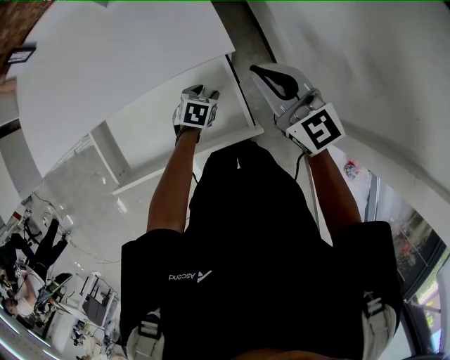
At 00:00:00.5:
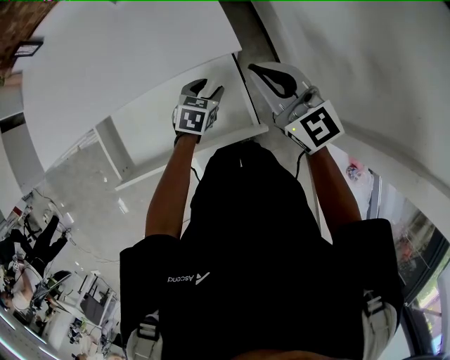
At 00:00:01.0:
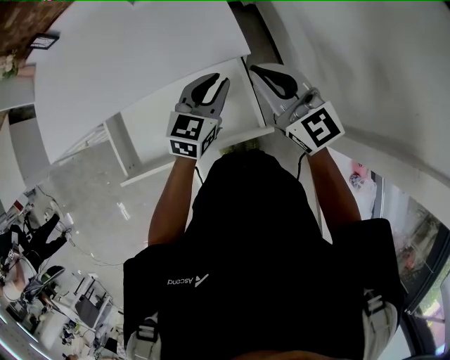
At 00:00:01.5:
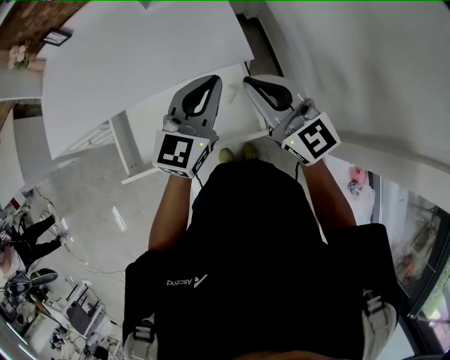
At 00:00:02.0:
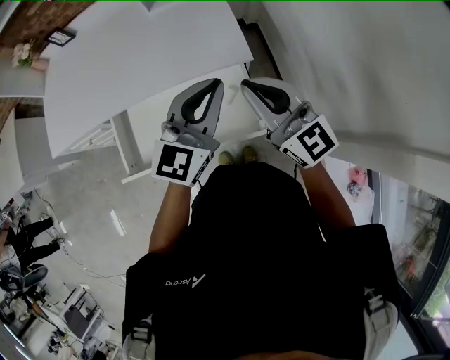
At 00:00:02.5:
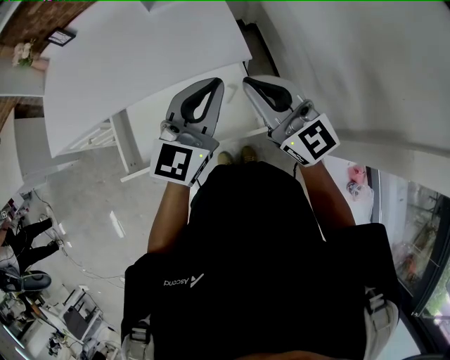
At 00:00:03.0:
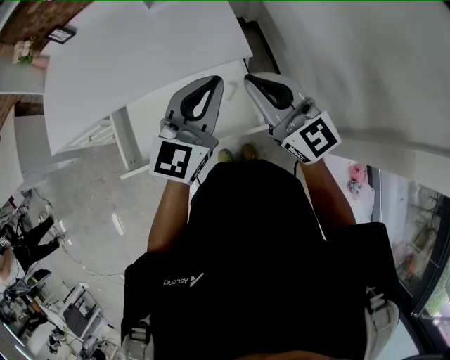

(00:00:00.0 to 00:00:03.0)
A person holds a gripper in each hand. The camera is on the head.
00:00:00.0 - 00:00:01.5: The left gripper goes roughly 35 cm upward, tips its fingers upward by some 50 degrees, and closes up, while the right gripper travels upward, backward and to the left by some 10 cm.
00:00:01.5 - 00:00:03.0: The left gripper ends up some 5 cm from where it was.

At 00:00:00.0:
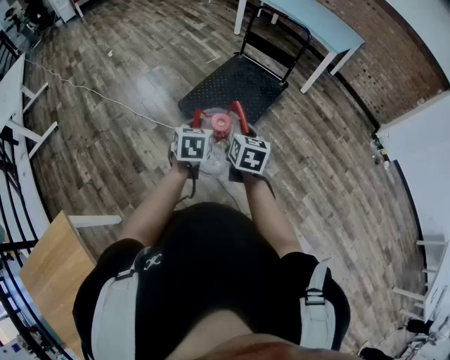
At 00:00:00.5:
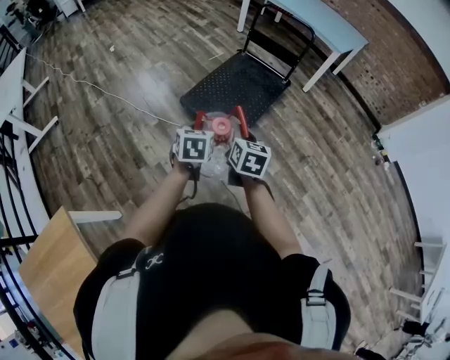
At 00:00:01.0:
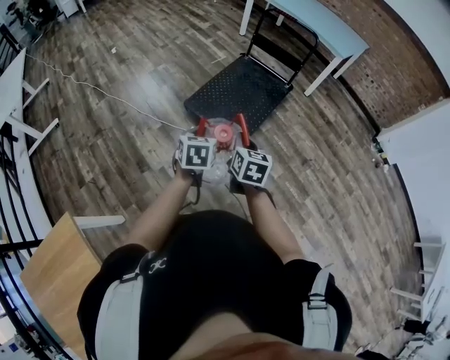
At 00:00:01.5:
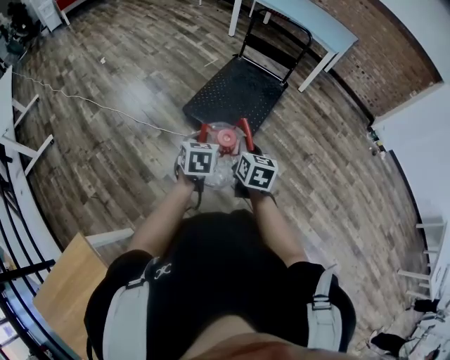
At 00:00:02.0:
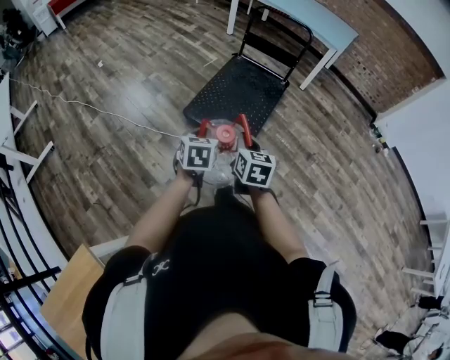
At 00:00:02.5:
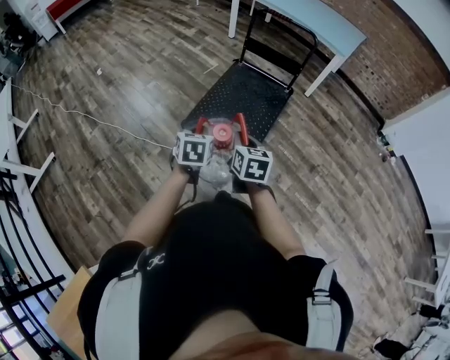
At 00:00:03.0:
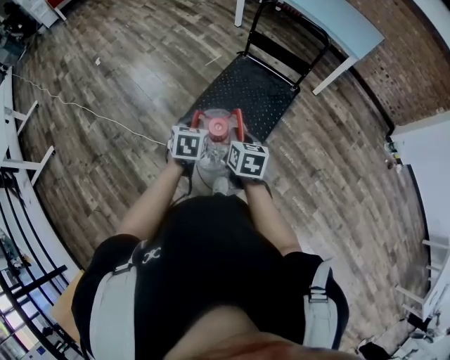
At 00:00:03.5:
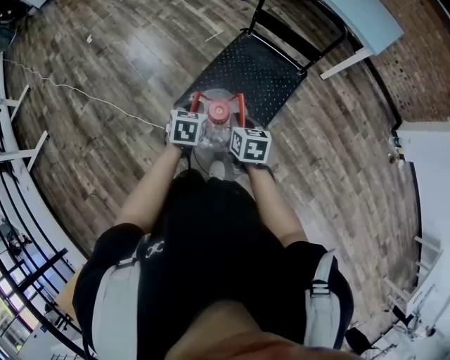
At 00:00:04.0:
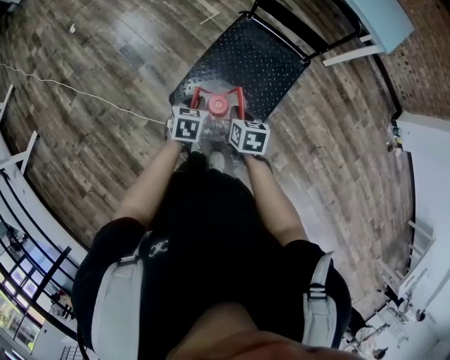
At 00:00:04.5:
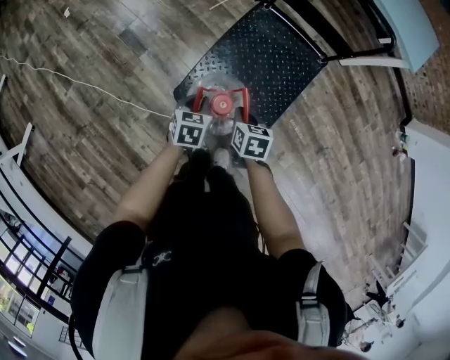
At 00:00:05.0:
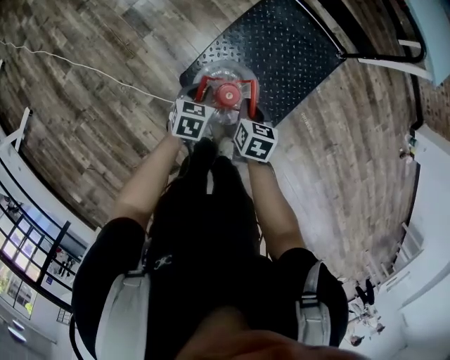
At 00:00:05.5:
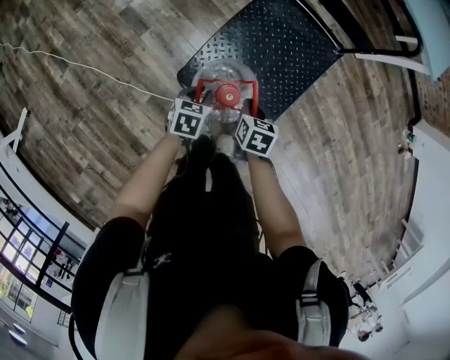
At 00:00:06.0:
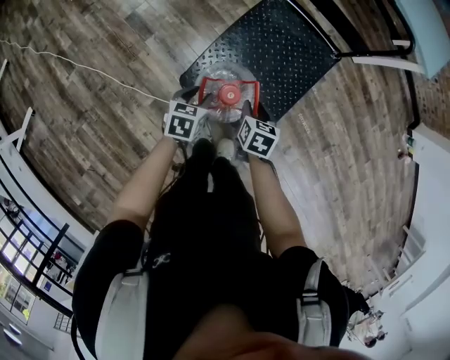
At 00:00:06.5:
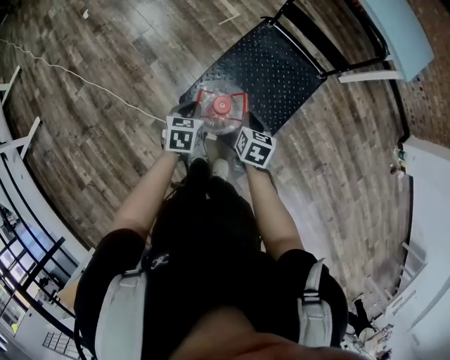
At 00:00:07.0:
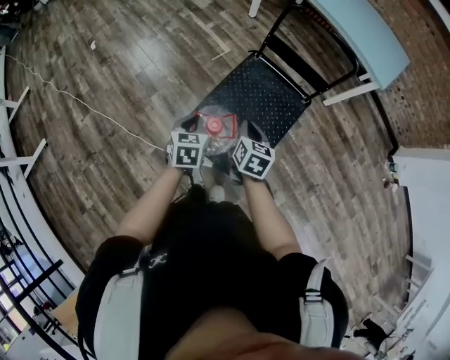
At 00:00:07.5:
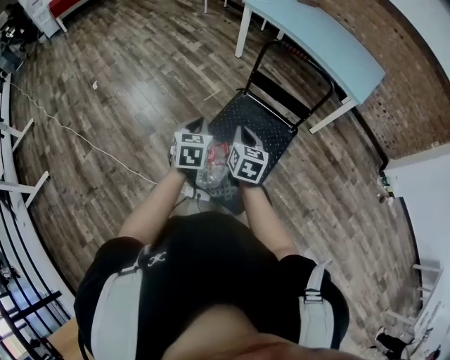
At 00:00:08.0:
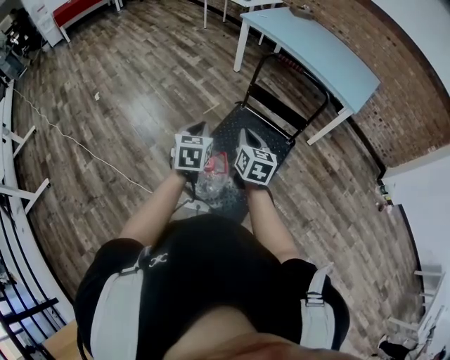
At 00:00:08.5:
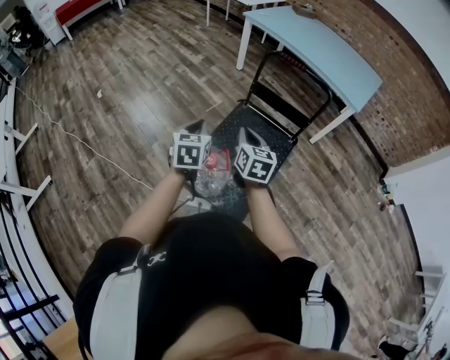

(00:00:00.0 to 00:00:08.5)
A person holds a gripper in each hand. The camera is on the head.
00:00:00.0 - 00:00:02.0: The two grippers go some 10 cm to the left.
00:00:02.0 - 00:00:04.0: The left gripper heads forward, covering approximately 40 cm. The right gripper heads forward and downward, covering approximately 40 cm, and rotates about 30 degrees.
00:00:04.0 - 00:00:06.5: The right gripper goes downward and returns, about 15 cm each way, and opens, then closes again; the left gripper is displaced to the left by roughly 5 cm, goes downward and returns, approximately 15 cm each way, and opens, then closes once more.
00:00:06.5 - 00:00:08.5: The two grippers go some 25 cm upward. The left gripper changes its angle by about 20 degrees, while the right gripper swivels roughly 30 degrees.

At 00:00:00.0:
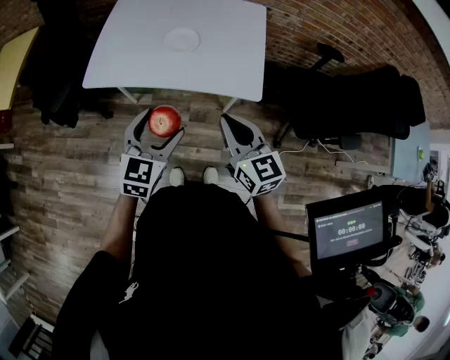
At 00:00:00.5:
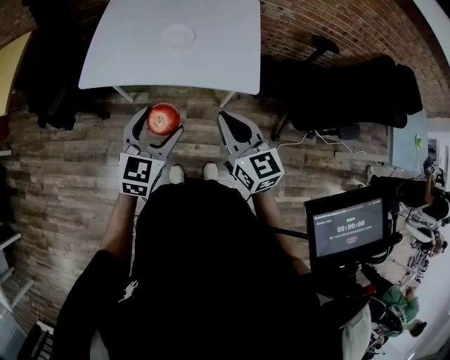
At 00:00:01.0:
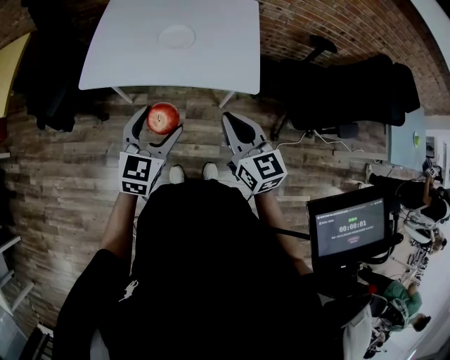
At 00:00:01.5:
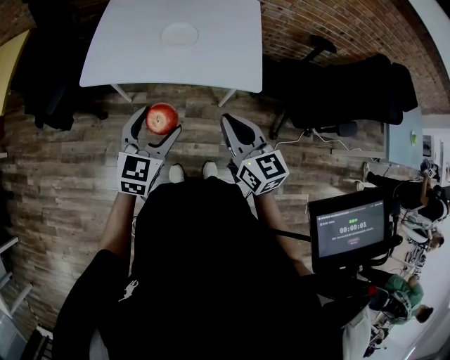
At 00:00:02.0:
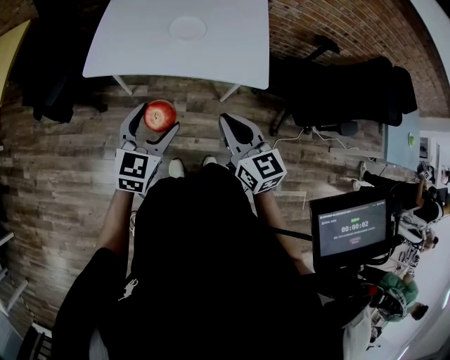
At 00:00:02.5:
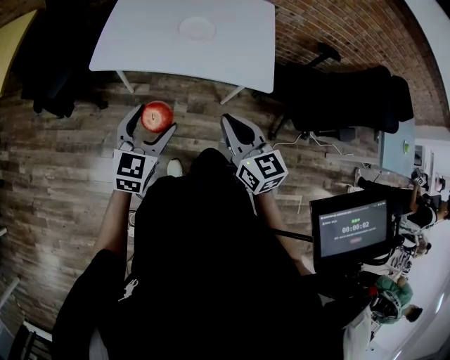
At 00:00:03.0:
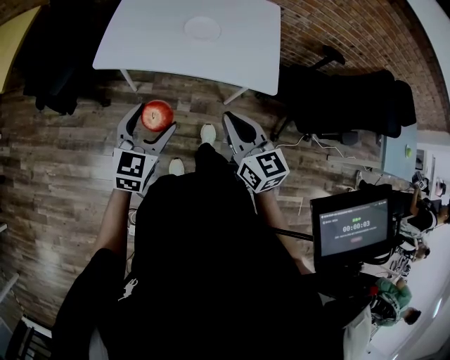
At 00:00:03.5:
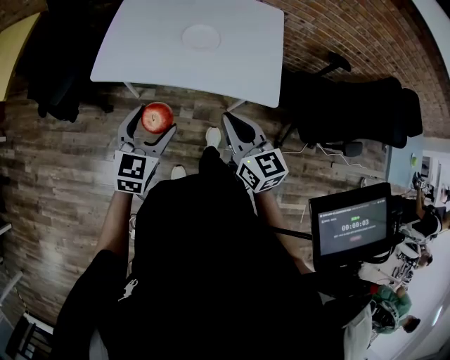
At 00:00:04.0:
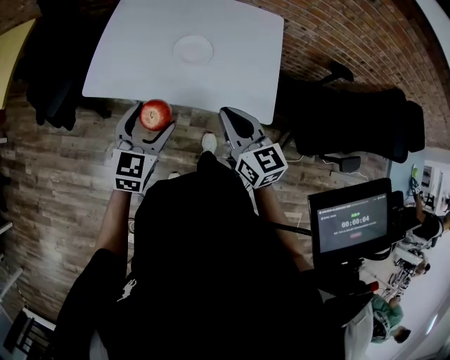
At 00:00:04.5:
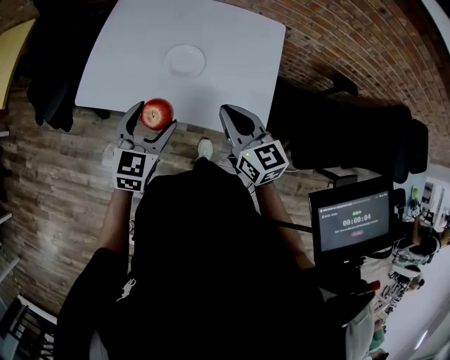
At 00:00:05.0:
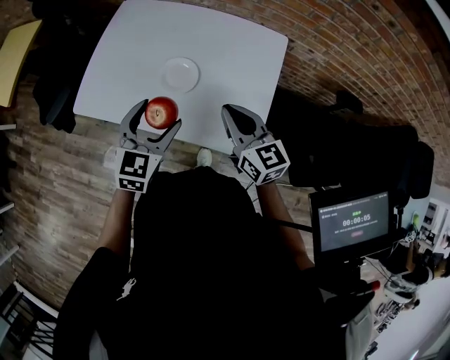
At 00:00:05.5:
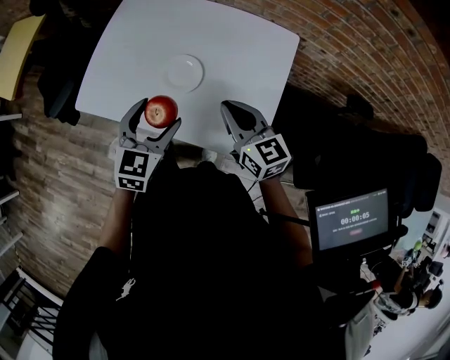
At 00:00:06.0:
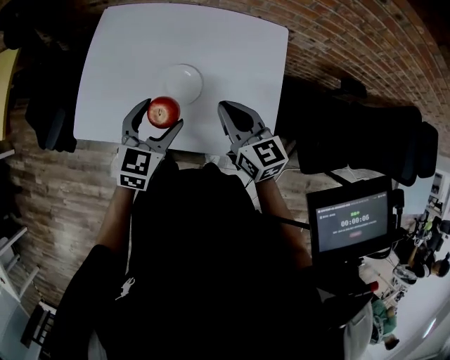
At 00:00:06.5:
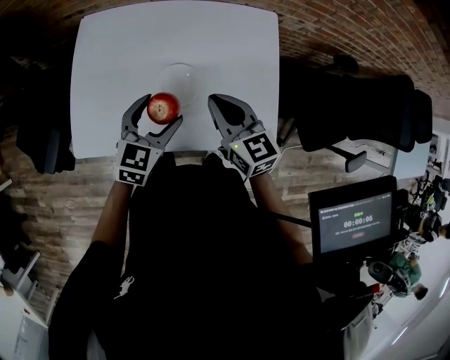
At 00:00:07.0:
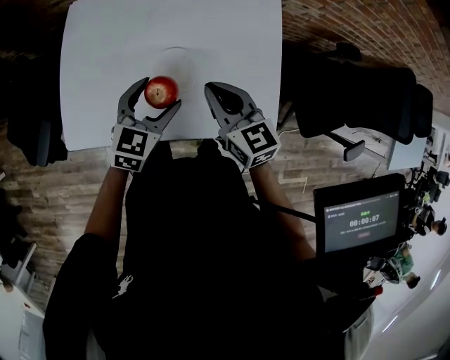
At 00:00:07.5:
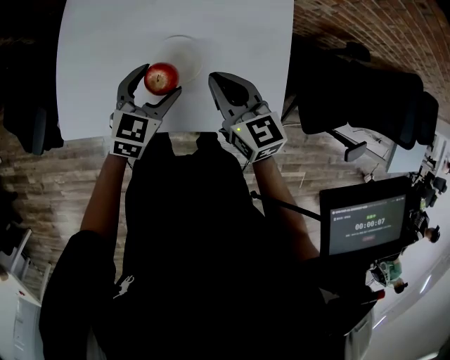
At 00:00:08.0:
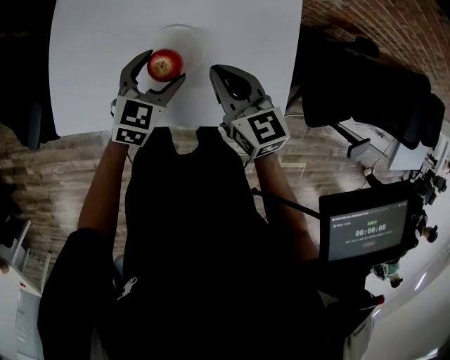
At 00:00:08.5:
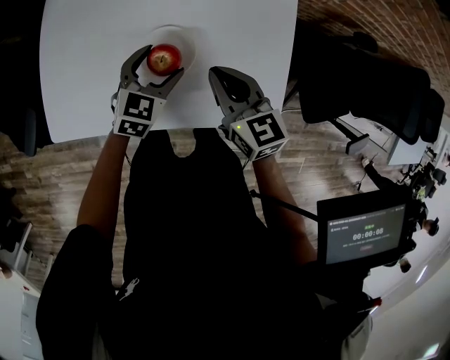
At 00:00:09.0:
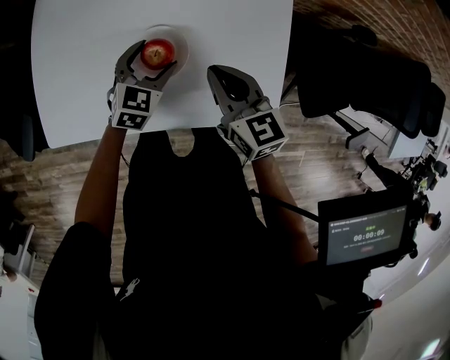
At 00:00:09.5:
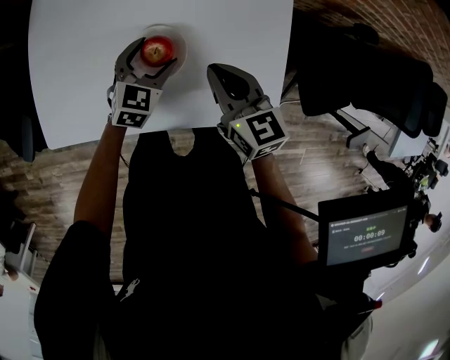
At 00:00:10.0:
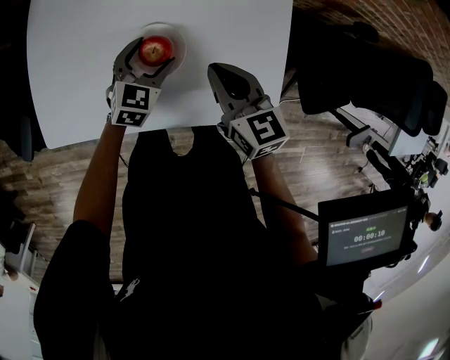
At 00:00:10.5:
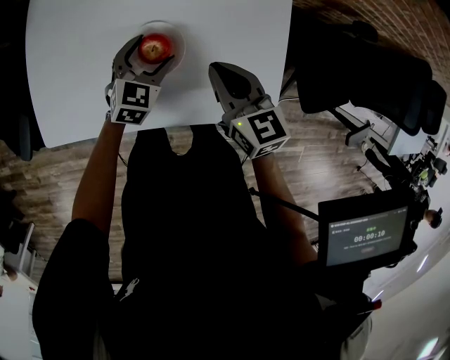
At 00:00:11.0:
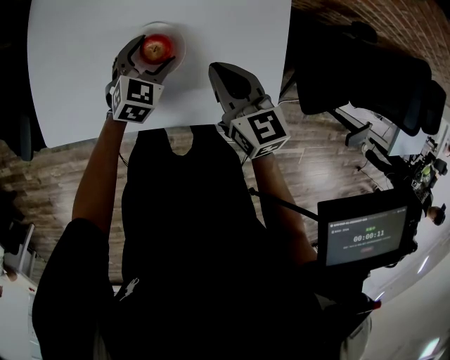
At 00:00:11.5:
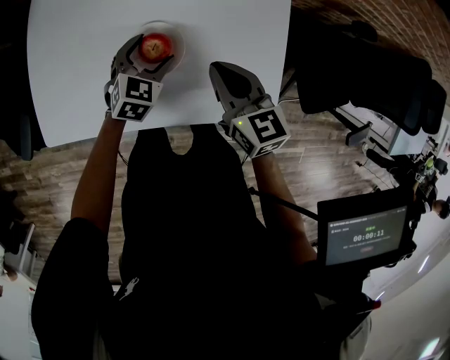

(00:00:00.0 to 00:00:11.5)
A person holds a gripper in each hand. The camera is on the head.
00:00:00.0 - 00:00:02.0: Both grippers travel together to the left, some 5 cm.
00:00:02.0 - 00:00:04.0: The grippers both shift forward by approximately 15 cm.
00:00:04.0 - 00:00:06.0: The right gripper moves forward, some 20 cm; the left gripper goes approximately 20 cm forward and to the right.
00:00:06.0 - 00:00:07.5: The left gripper heads downward and forward, covering approximately 10 cm; the right gripper moves downward, roughly 5 cm.
00:00:07.5 - 00:00:09.5: The left gripper goes about 5 cm downward.
00:00:09.5 - 00:00:11.5: The grippers stay close to where they were, moving slightly.

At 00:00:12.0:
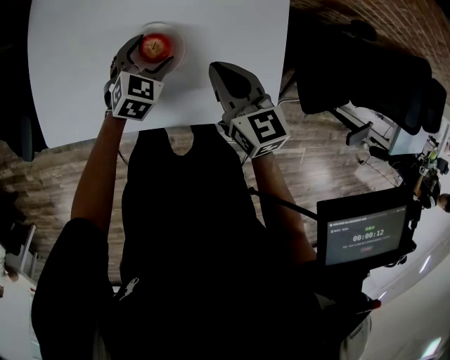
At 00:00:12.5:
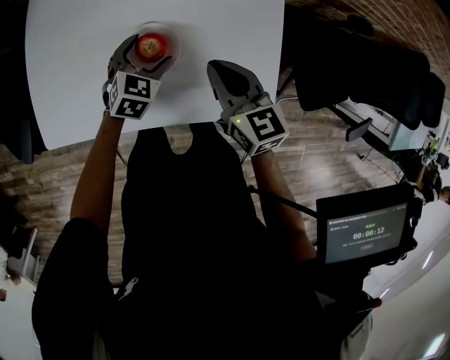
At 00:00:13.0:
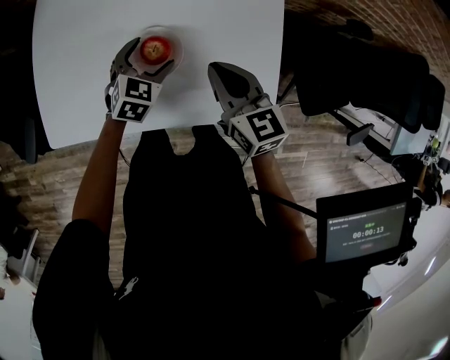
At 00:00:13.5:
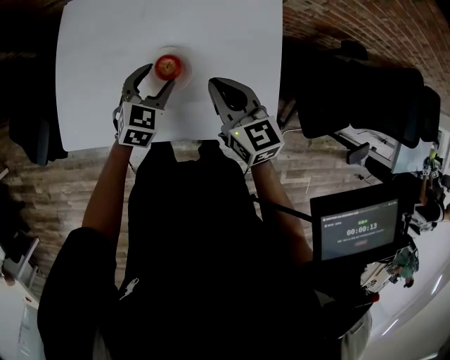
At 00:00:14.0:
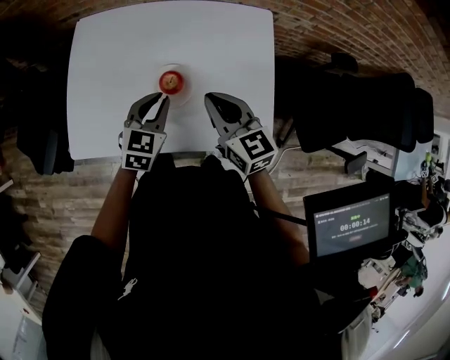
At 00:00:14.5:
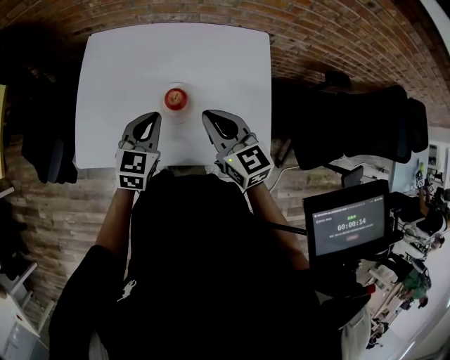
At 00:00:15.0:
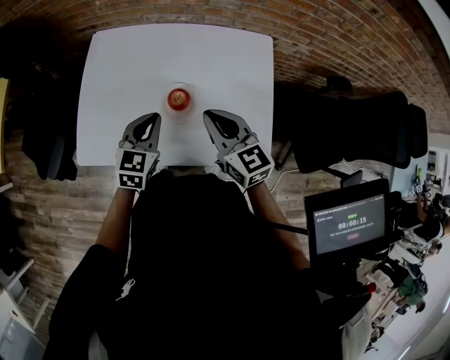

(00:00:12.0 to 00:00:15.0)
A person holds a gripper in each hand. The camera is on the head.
00:00:12.0 - 00:00:13.5: The right gripper shifts by approximately 5 cm. Meanwhile the left gripper shifts some 10 cm upward.
00:00:13.5 - 00:00:15.0: The left gripper shifts about 5 cm upward, and closes its fingers.
